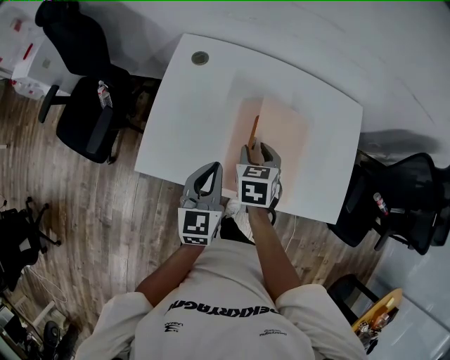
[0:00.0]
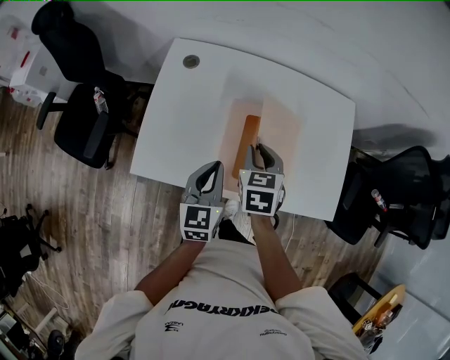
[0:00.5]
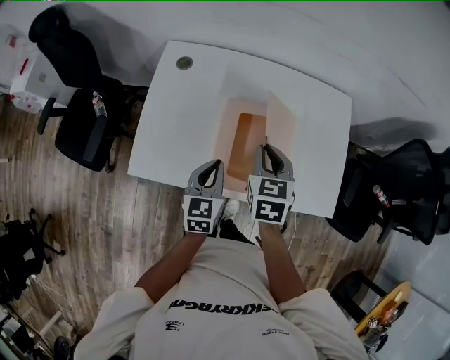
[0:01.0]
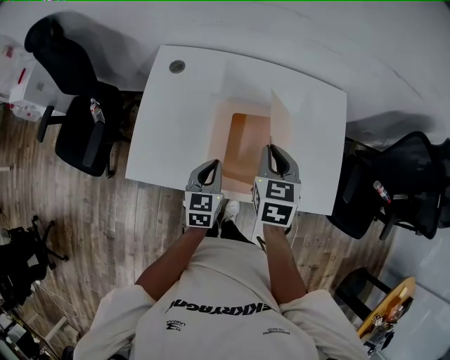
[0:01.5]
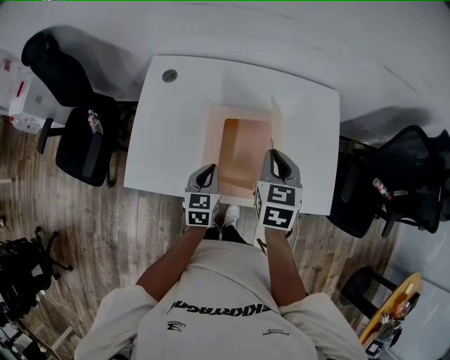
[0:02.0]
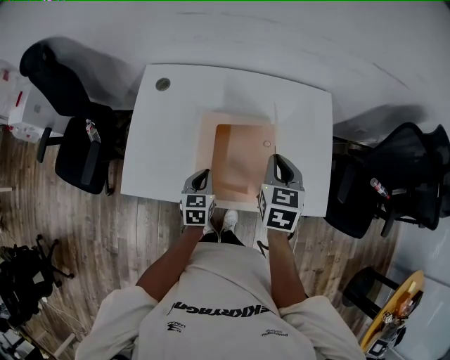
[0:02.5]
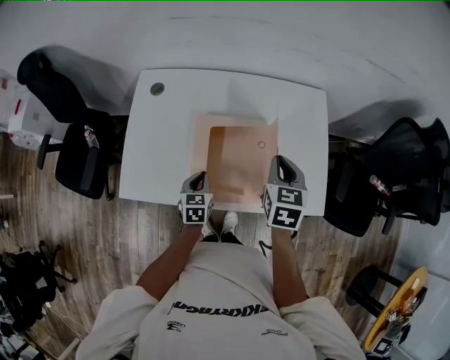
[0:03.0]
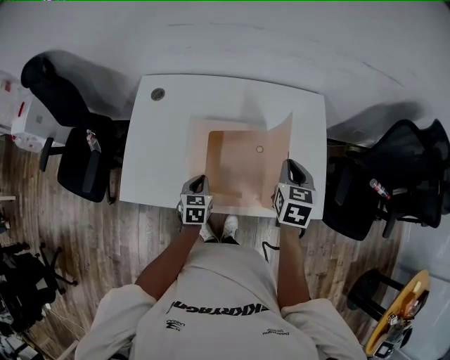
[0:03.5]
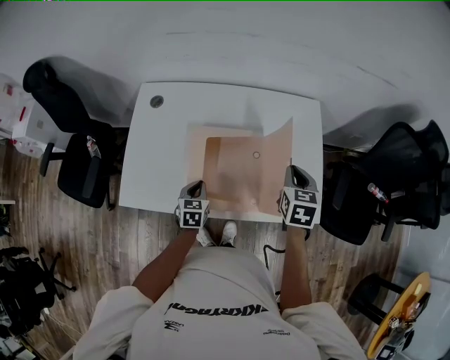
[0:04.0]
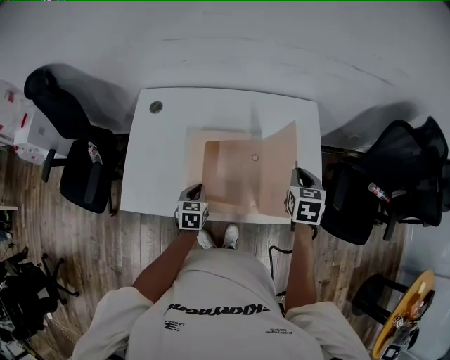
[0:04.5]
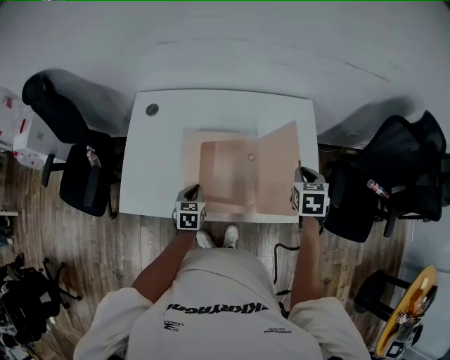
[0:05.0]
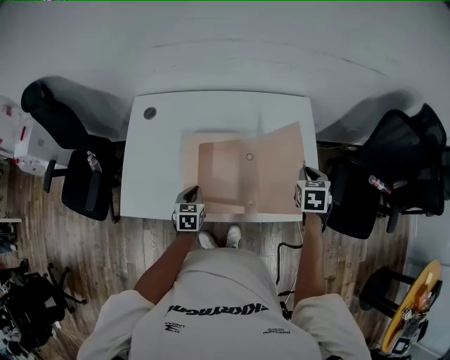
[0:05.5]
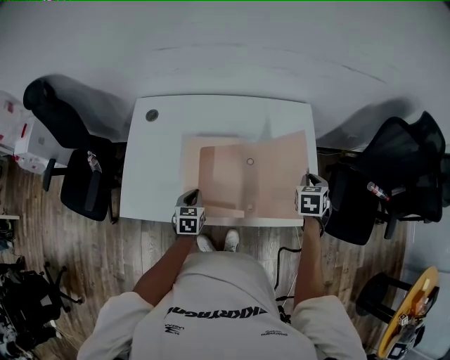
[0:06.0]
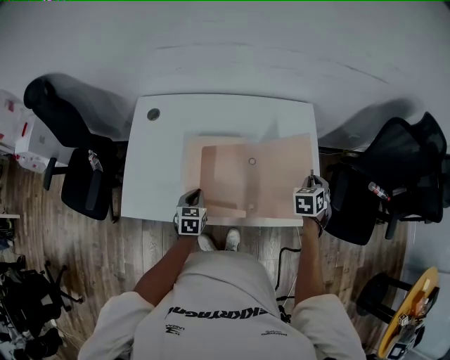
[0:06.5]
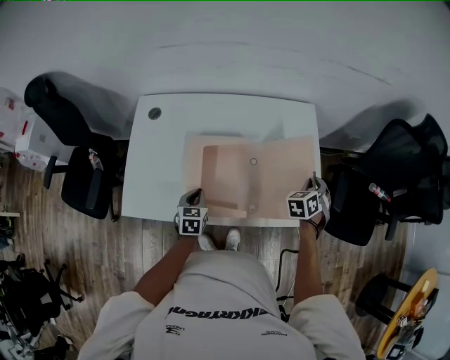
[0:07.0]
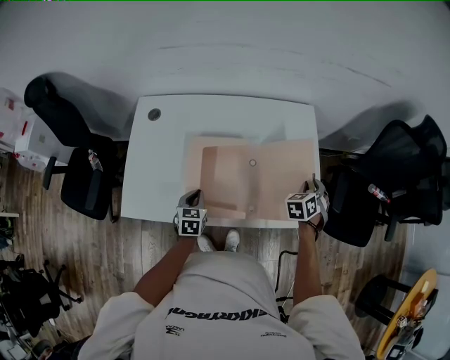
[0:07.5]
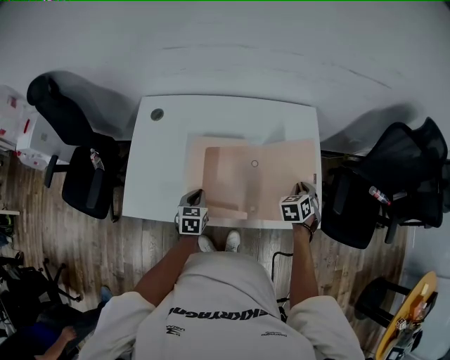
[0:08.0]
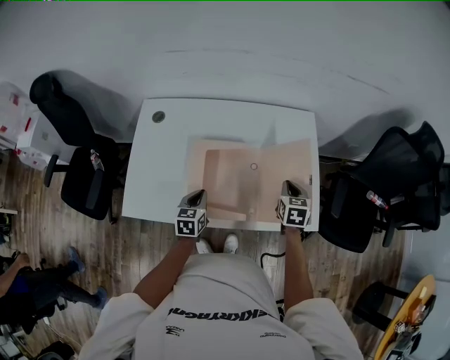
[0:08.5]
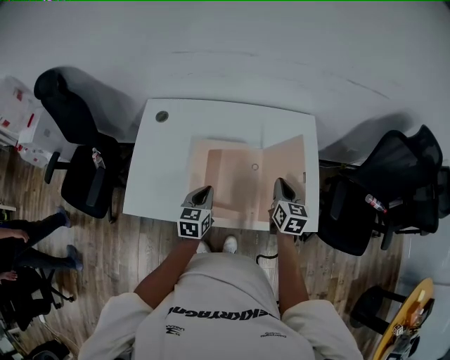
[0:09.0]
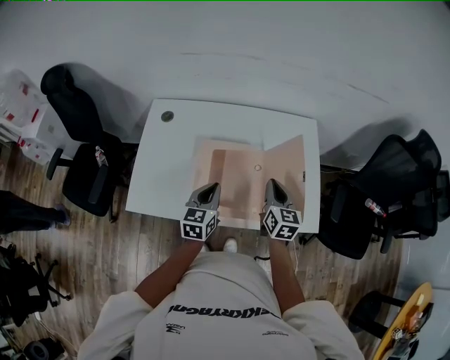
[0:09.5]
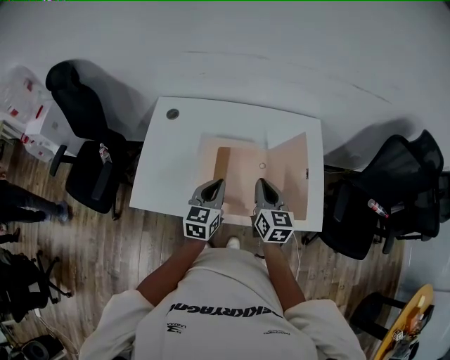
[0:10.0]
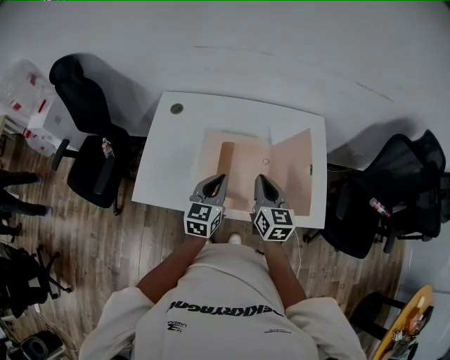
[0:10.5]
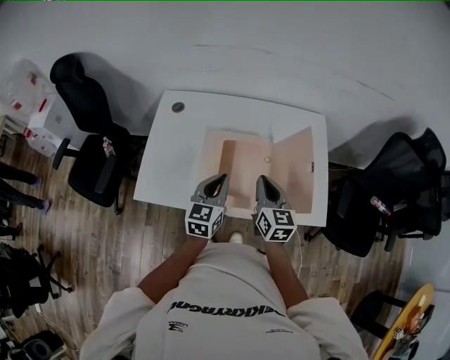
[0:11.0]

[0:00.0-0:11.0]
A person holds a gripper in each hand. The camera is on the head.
0:00.0 to 0:02.0: The left gripper goes some 10 cm downward and to the right, while the right gripper heads to the right and upward, covering roughly 15 cm, and closes its fingers.
0:02.0 to 0:03.5: The right gripper goes some 10 cm to the right. The left gripper is displaced downward by some 5 cm.
0:03.5 to 0:05.5: The right gripper is displaced to the right by some 10 cm.
0:05.5 to 0:07.5: The right gripper goes about 5 cm downward, and swivels approximately 30 degrees.
0:07.5 to 0:09.0: The right gripper moves to the left and upward, some 15 cm, swivels some 50 degrees, and closes, while the left gripper moves upward, about 10 cm.
0:09.0 to 0:11.0: The right gripper moves to the left, backward and upward, roughly 15 cm, while the left gripper shifts about 10 cm upward.

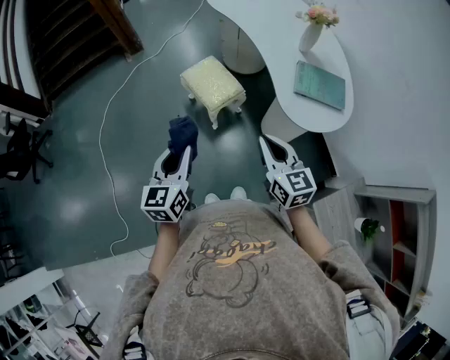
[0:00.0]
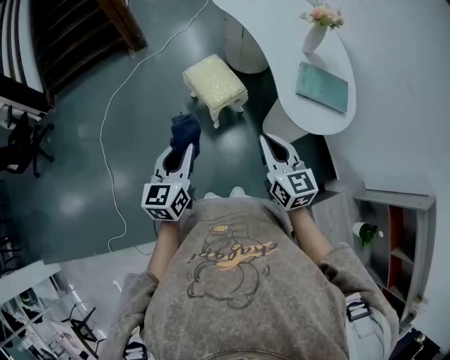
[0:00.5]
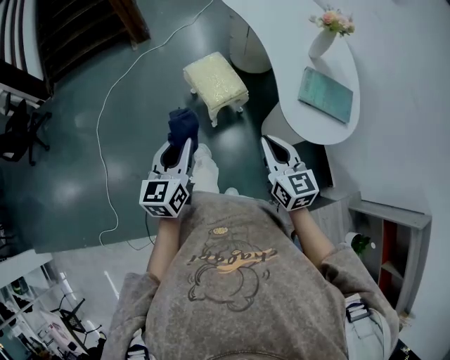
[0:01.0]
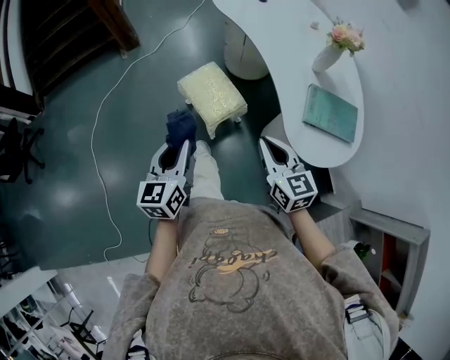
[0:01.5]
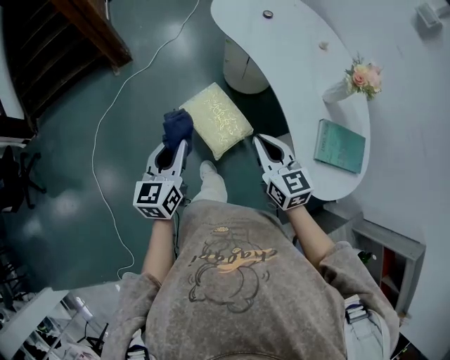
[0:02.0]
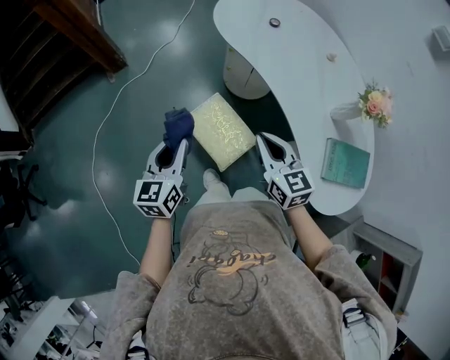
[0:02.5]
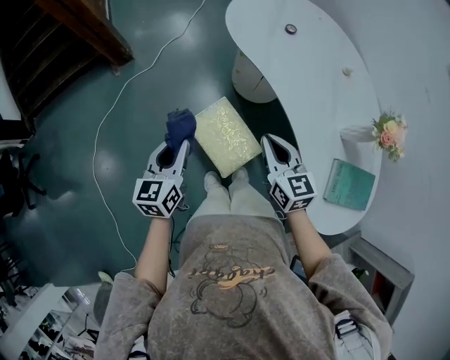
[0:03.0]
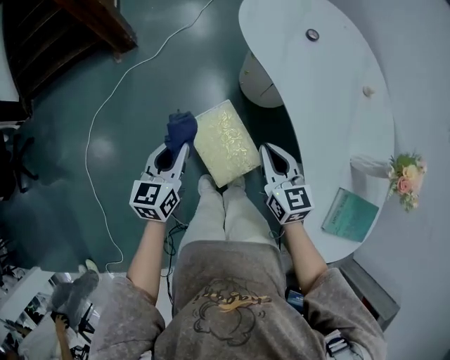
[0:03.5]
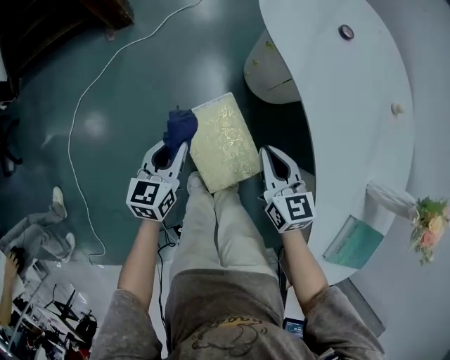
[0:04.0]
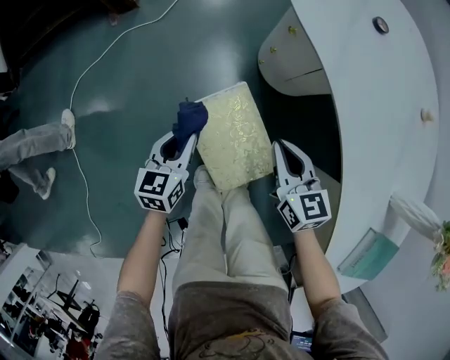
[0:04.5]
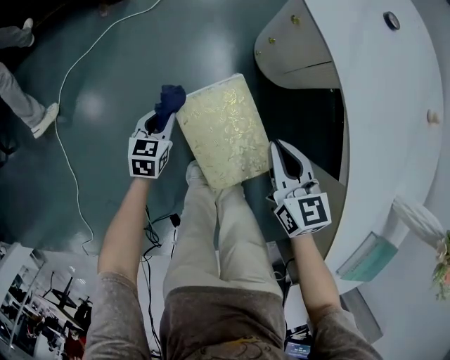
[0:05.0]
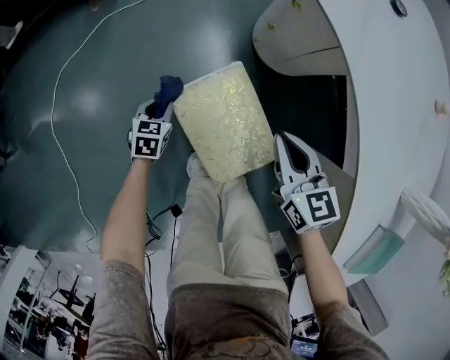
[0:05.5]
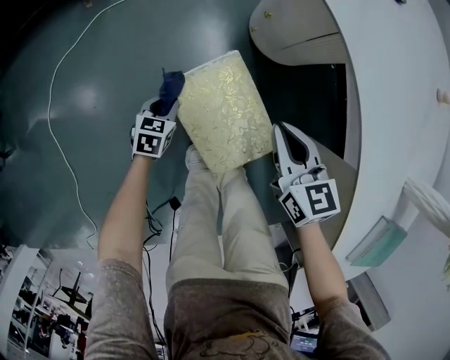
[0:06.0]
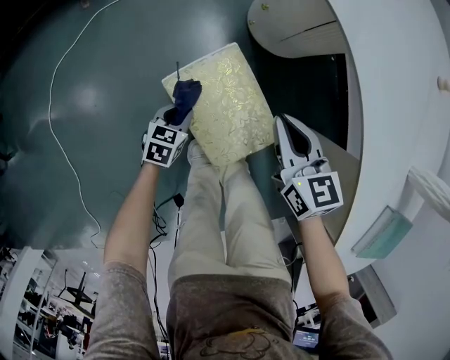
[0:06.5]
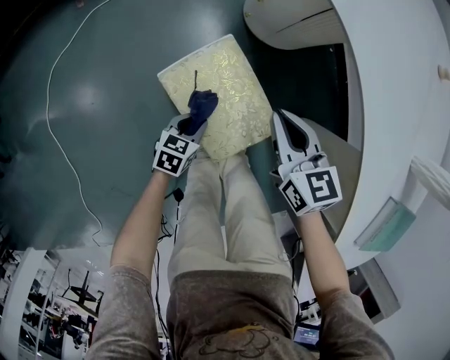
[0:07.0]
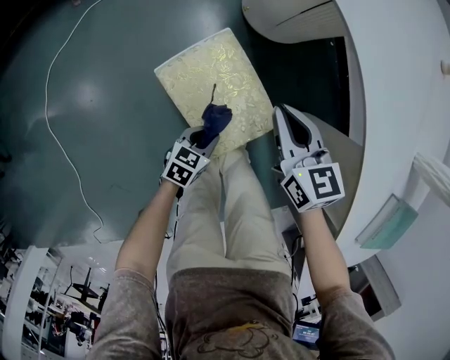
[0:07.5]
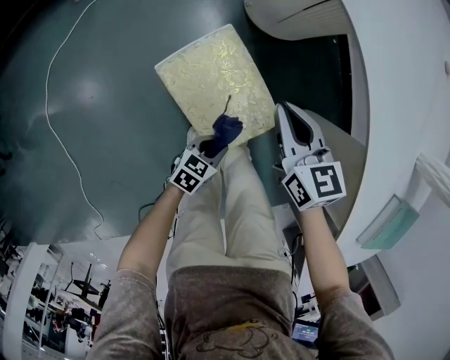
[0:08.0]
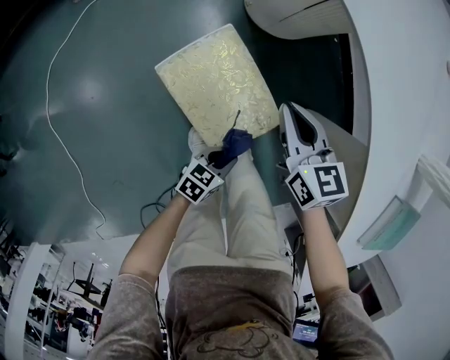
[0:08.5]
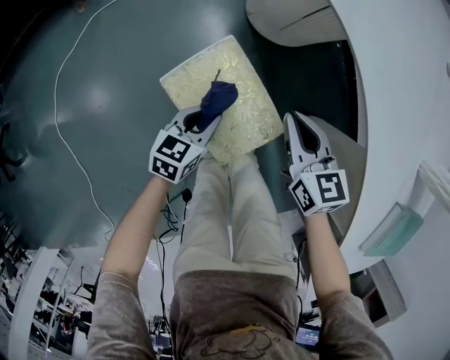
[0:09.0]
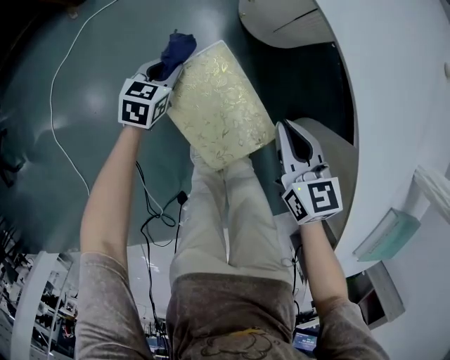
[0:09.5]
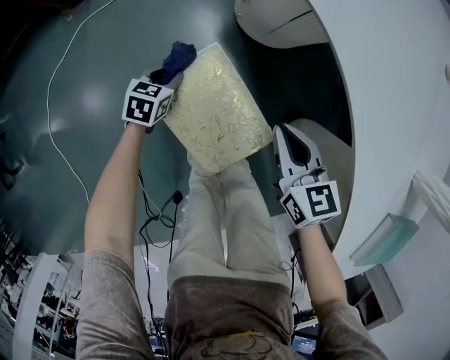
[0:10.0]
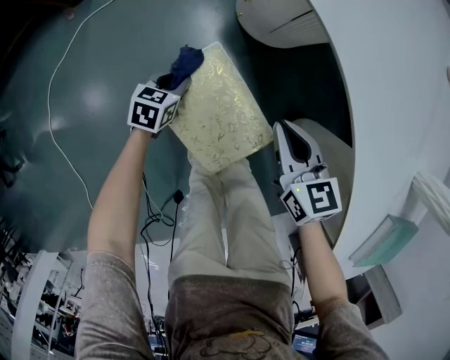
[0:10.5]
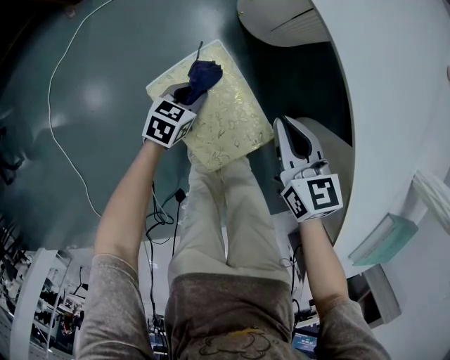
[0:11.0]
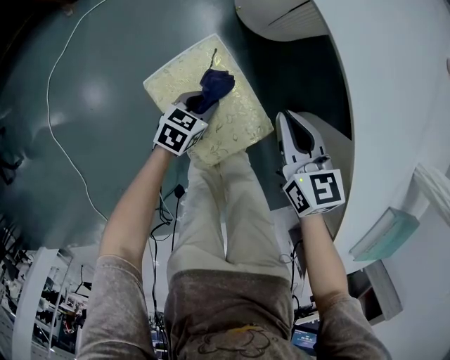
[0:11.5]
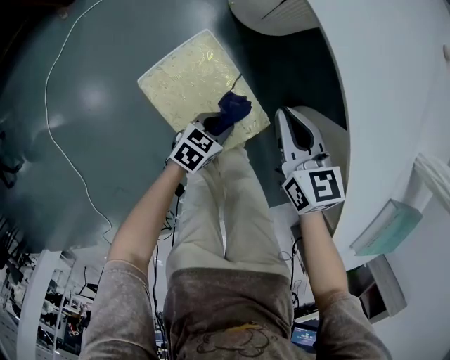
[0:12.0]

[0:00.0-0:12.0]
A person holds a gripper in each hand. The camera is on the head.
0:00.0 to 0:02.0: Both grippers move forward, some 30 cm.
0:02.0 to 0:04.0: The right gripper moves forward and downward, approximately 20 cm, while the left gripper goes roughly 20 cm downward and forward.
0:04.0 to 0:06.0: The left gripper heads downward, covering some 25 cm, and swivels roughly 30 degrees, while the right gripper shifts some 10 cm downward.
0:06.0 to 0:08.0: The left gripper is displaced to the right and backward by about 25 cm, and swivels roughly 30 degrees.
0:08.0 to 0:10.0: The left gripper goes about 30 cm forward and to the left, and rotates roughly 20 degrees.
0:10.0 to 0:12.0: The left gripper heads to the right and backward, covering approximately 25 cm, and rotates some 20 degrees.

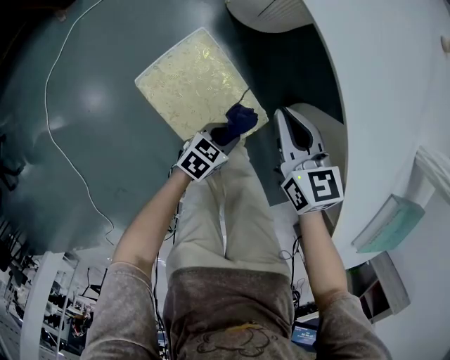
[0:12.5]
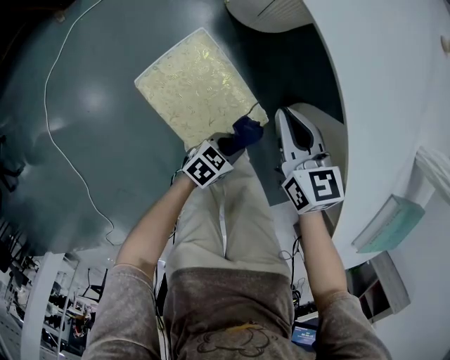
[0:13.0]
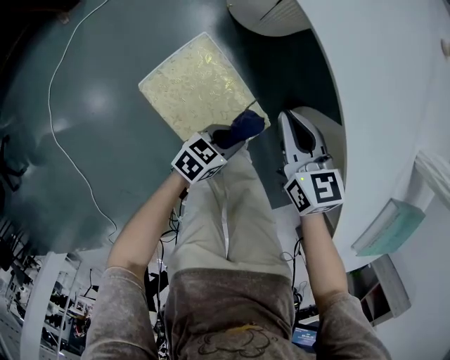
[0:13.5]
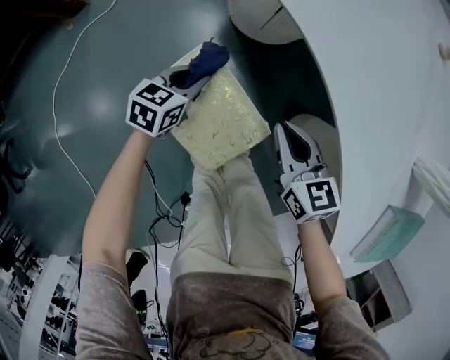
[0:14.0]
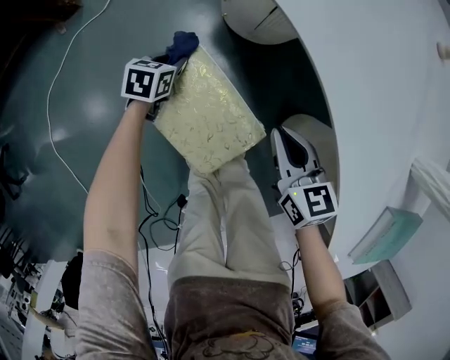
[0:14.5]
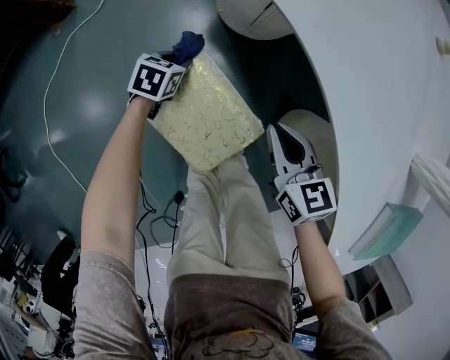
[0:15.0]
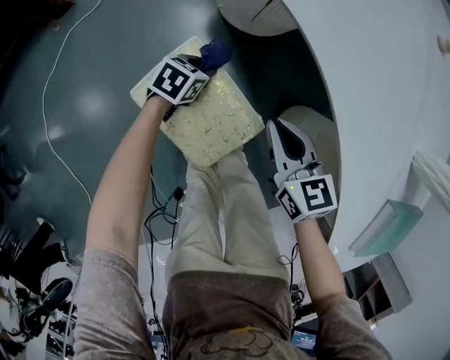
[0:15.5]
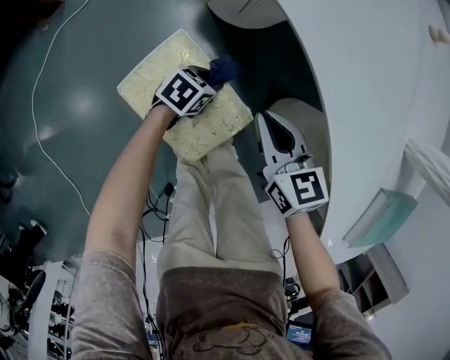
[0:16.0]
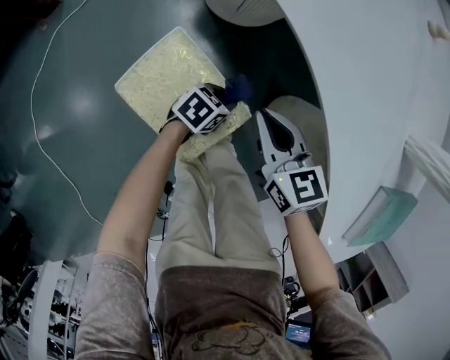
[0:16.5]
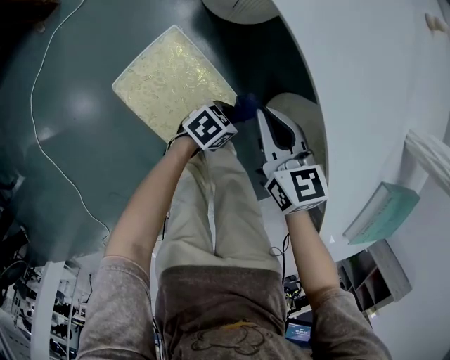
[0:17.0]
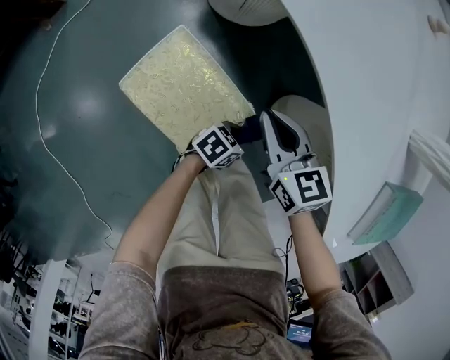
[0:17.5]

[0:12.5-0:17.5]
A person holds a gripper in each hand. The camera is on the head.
0:12.5 to 0:15.0: The left gripper travels to the left and forward by some 30 cm, and rotates about 20 degrees.
0:15.0 to 0:17.5: The left gripper ends up about 35 cm from where it was, and rotates about 40 degrees.
